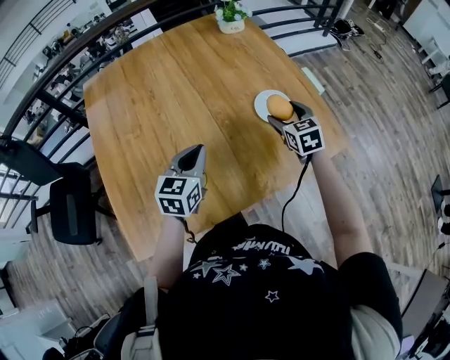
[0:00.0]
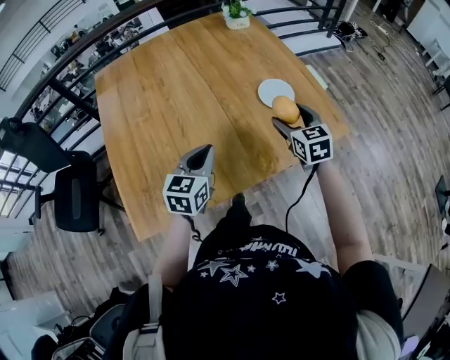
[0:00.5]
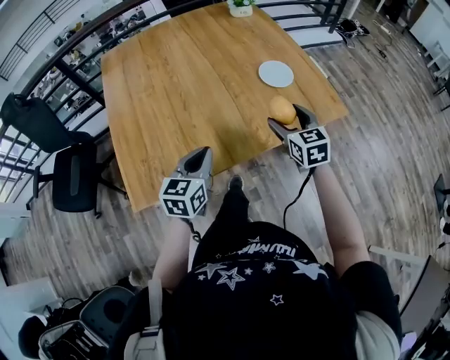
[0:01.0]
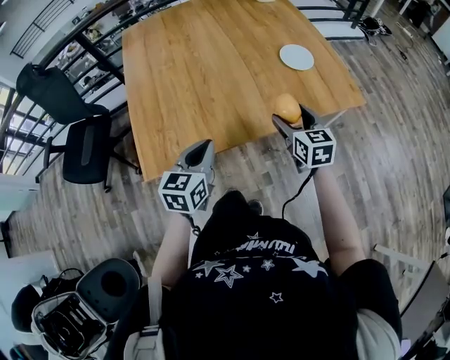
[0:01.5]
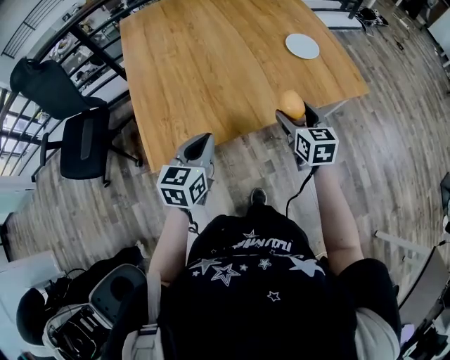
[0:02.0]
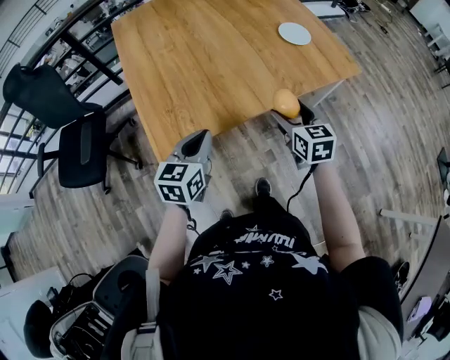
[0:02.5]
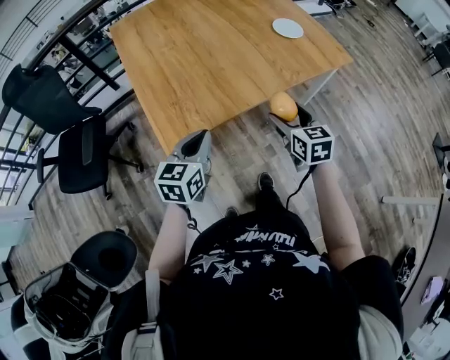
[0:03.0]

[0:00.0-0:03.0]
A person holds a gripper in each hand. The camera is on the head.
0:00.0 to 0:01.5: Both grippers travel together backward, approximately 25 cm.
0:01.5 to 0:03.0: The right gripper is displaced backward and to the left by some 20 cm. Meanwhile the left gripper goes approximately 15 cm to the left and backward.

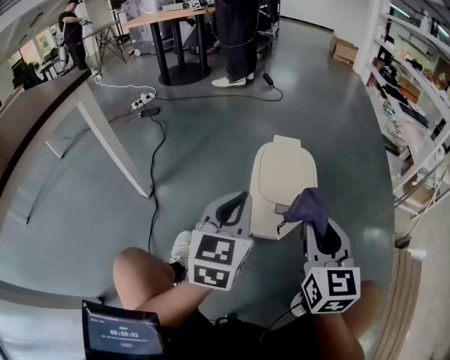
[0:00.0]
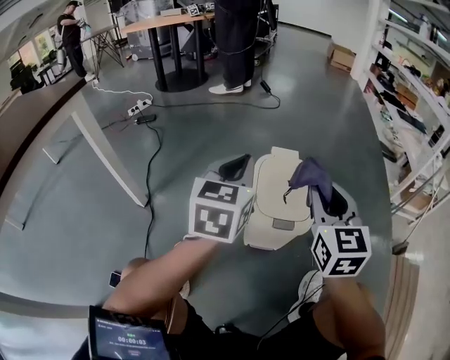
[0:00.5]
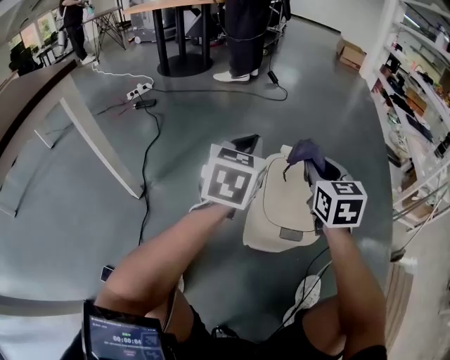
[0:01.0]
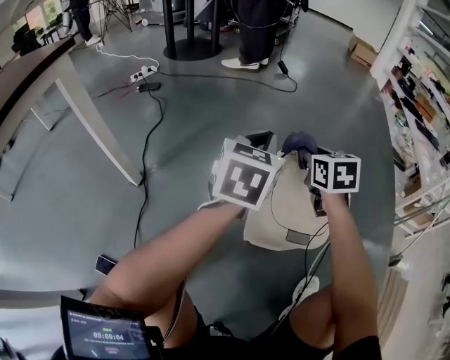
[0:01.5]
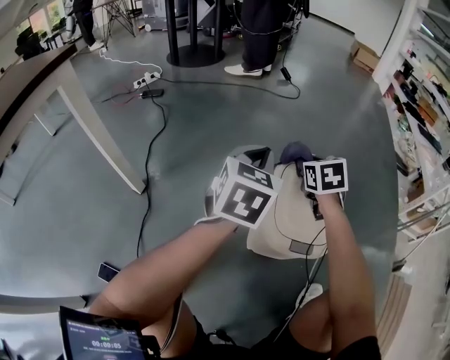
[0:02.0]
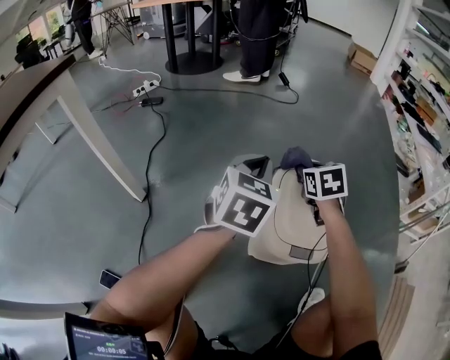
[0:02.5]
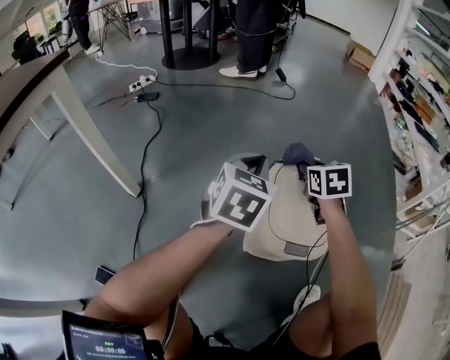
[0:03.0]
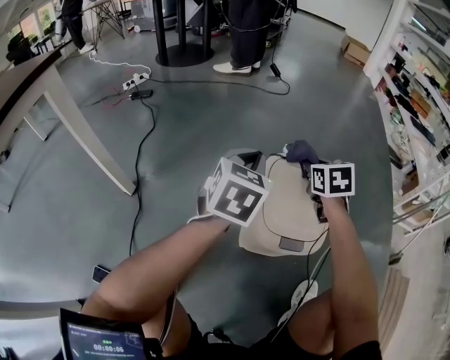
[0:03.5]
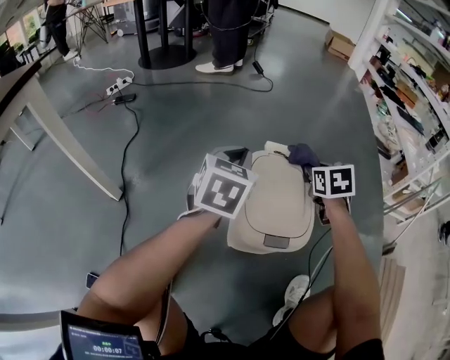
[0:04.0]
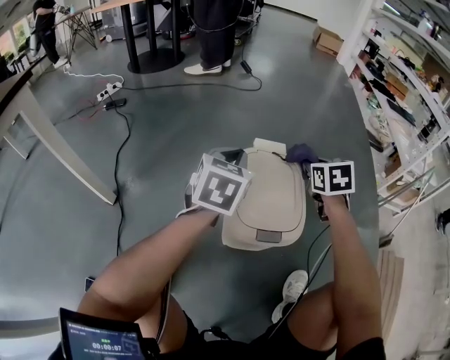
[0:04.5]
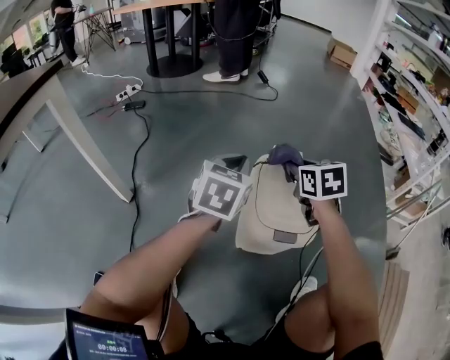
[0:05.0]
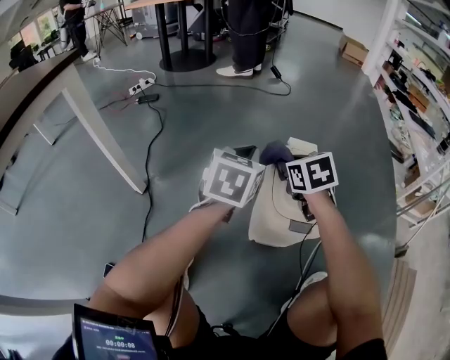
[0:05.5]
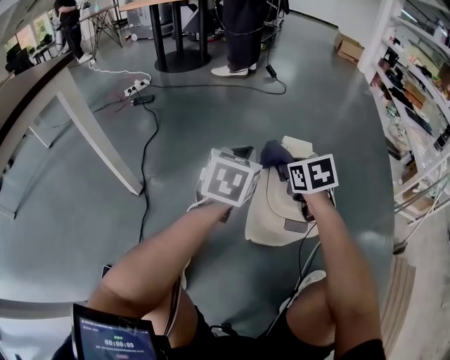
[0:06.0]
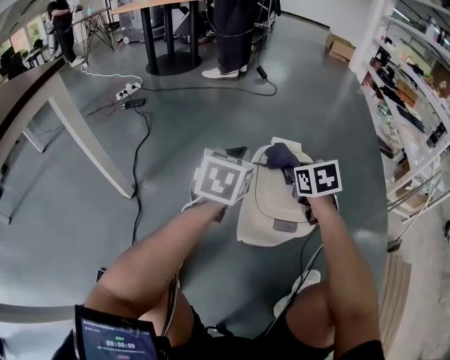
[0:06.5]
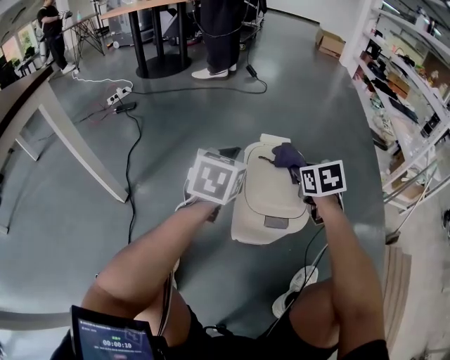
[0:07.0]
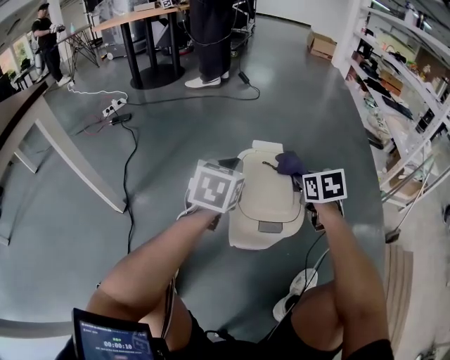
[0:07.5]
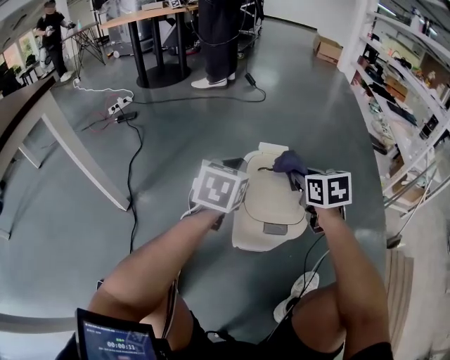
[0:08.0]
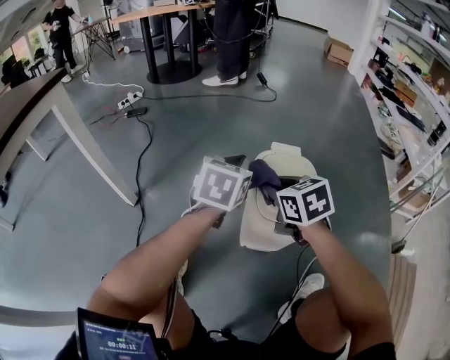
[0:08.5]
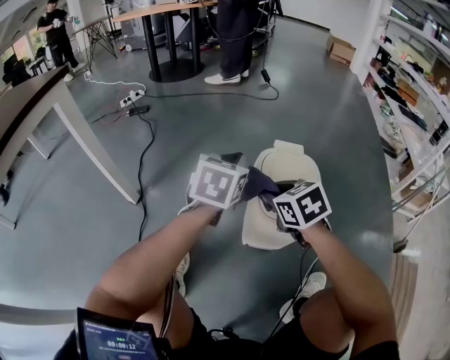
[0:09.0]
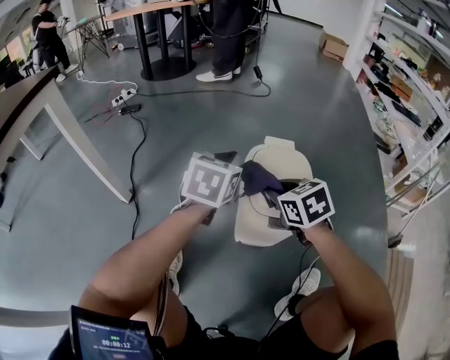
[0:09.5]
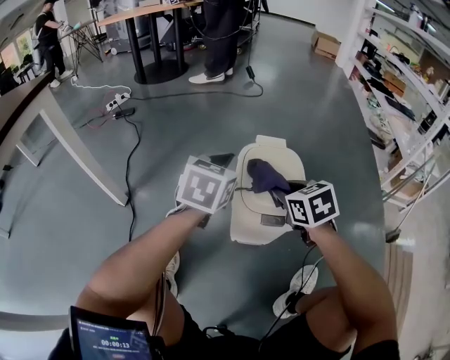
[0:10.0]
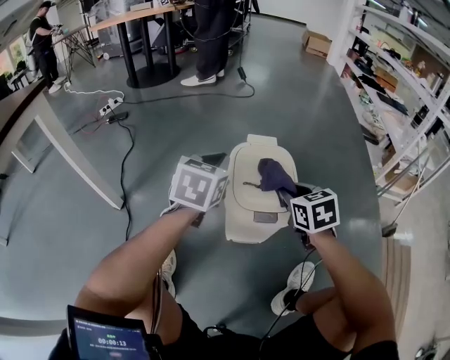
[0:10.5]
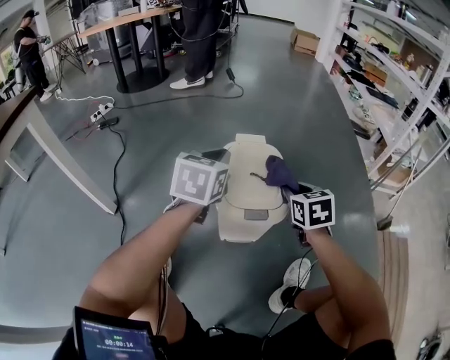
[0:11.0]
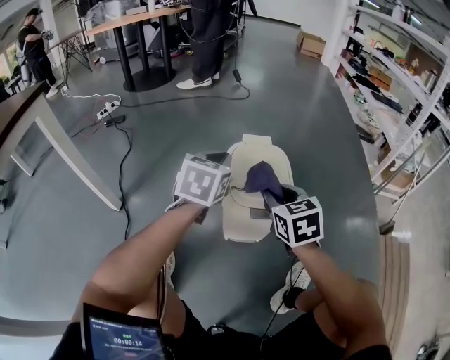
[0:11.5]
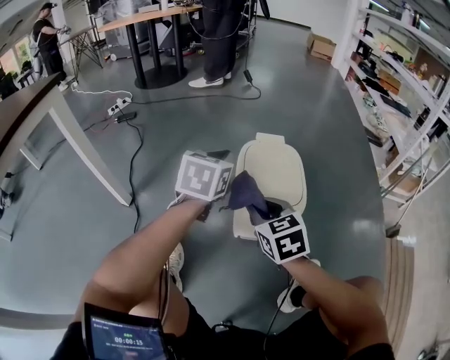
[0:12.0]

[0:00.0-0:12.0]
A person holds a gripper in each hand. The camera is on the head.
0:00.0 to 0:02.0: The left gripper heads forward, covering about 20 cm. Meanwhile the right gripper heads forward and downward, covering approximately 35 cm, and tilts its fingers approximately 30 degrees downward.
0:02.0 to 0:04.0: The right gripper heads to the right, covering some 15 cm. The left gripper moves roughly 5 cm.
0:04.0 to 0:06.0: The left gripper moves about 5 cm; the right gripper goes about 15 cm to the left and backward.
0:06.0 to 0:08.0: The right gripper heads to the right, covering about 10 cm.
0:08.0 to 0:10.0: The right gripper is displaced backward and to the left by approximately 10 cm.
0:10.0 to 0:12.0: The right gripper moves backward and to the left, roughly 10 cm.

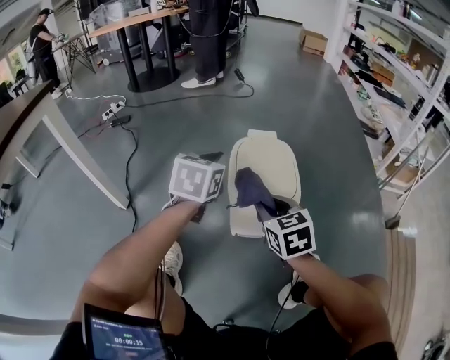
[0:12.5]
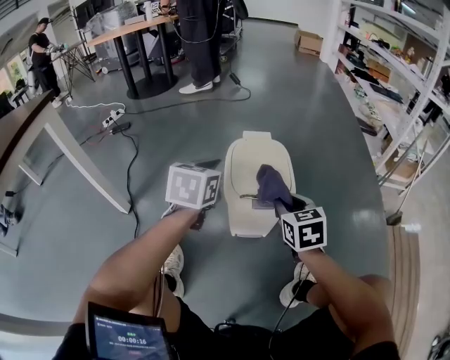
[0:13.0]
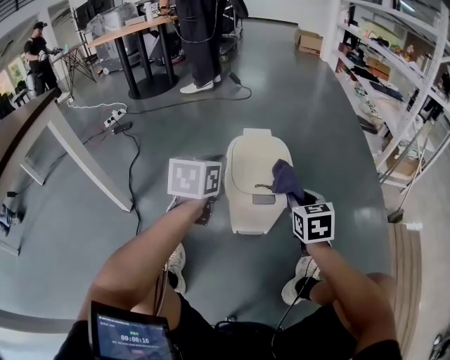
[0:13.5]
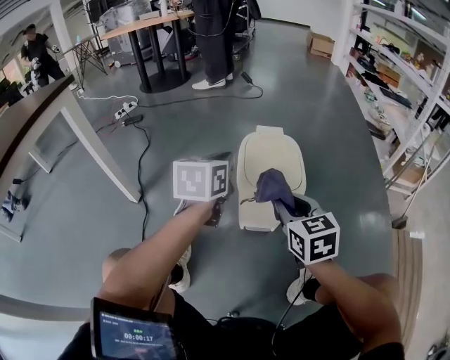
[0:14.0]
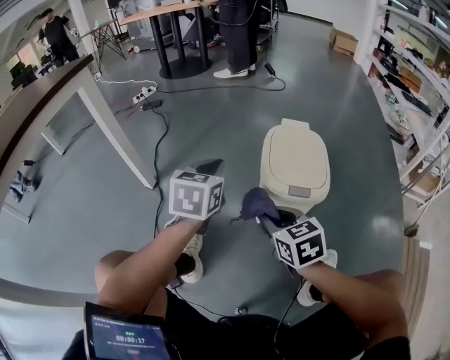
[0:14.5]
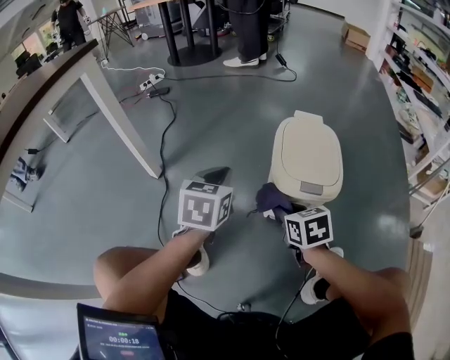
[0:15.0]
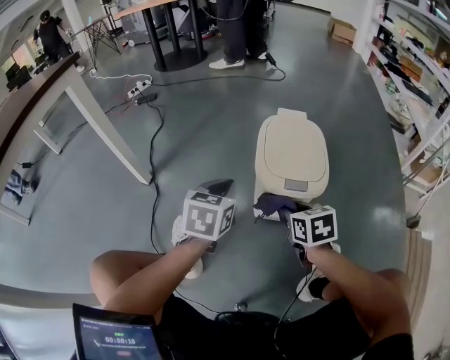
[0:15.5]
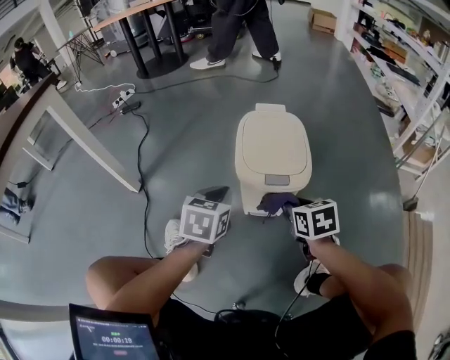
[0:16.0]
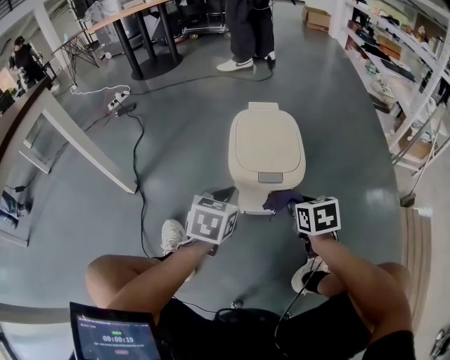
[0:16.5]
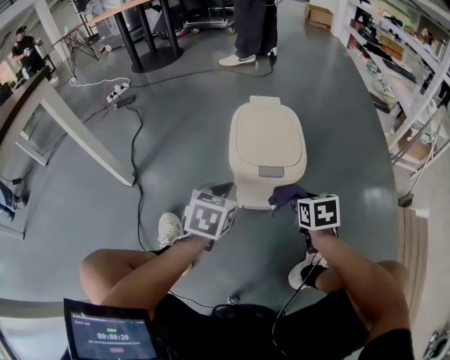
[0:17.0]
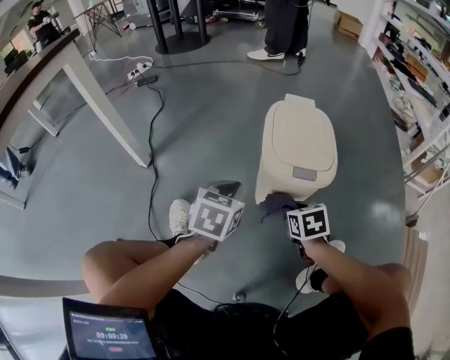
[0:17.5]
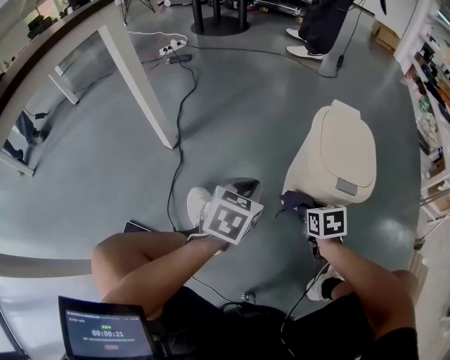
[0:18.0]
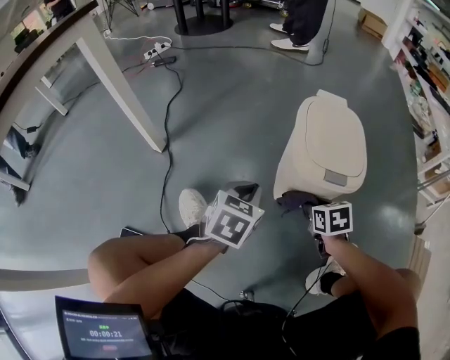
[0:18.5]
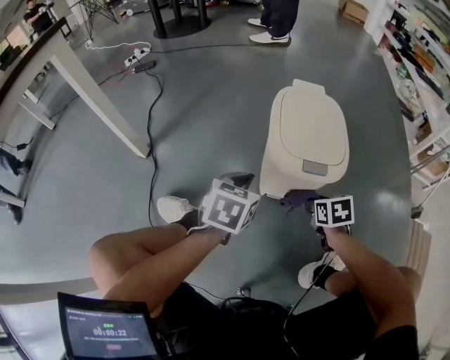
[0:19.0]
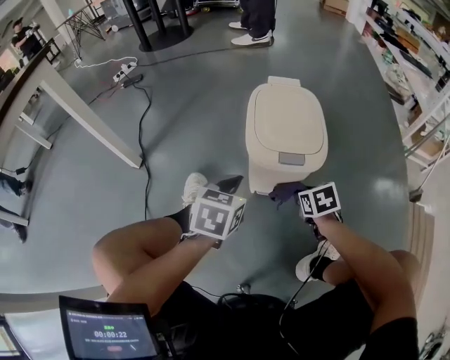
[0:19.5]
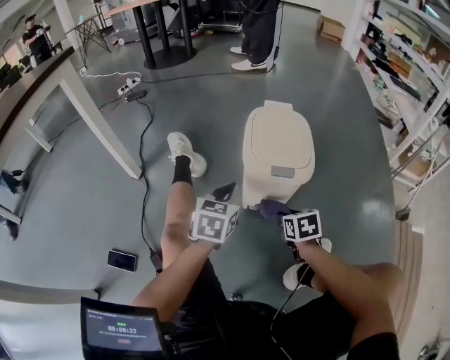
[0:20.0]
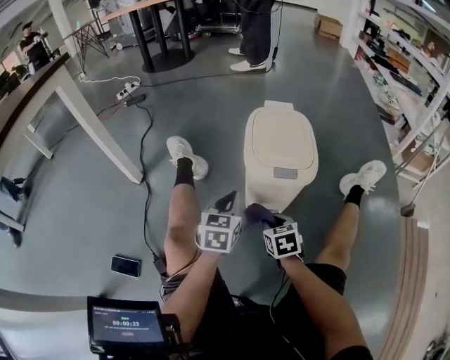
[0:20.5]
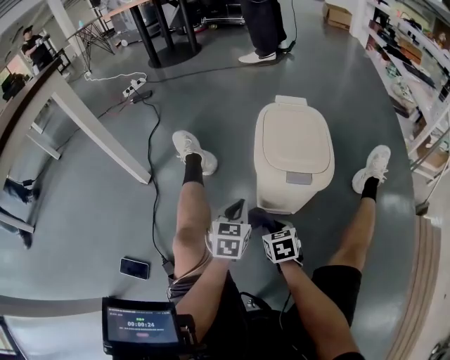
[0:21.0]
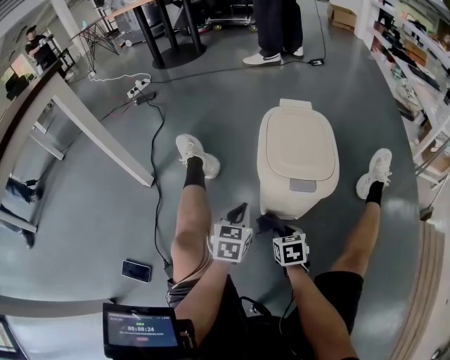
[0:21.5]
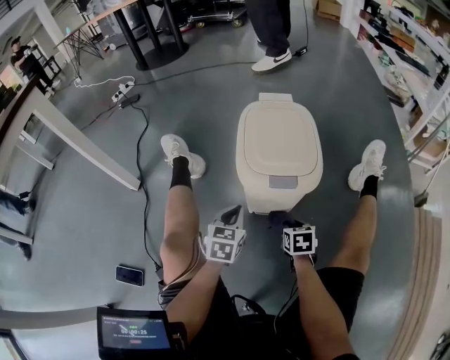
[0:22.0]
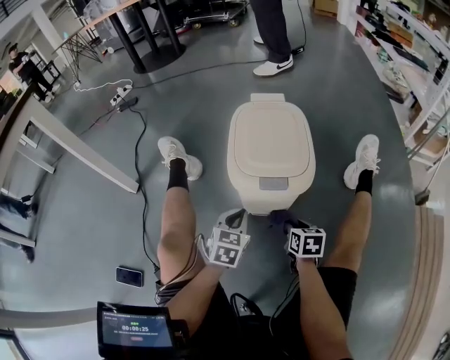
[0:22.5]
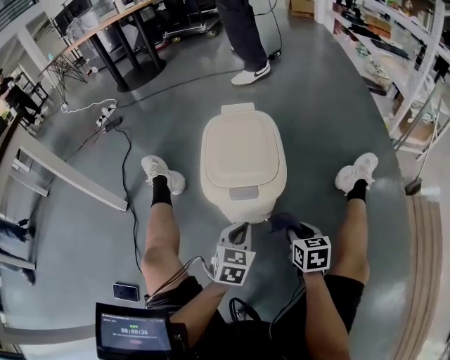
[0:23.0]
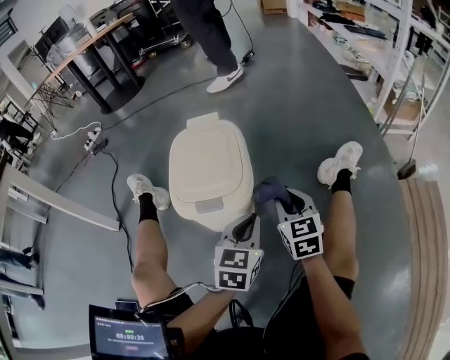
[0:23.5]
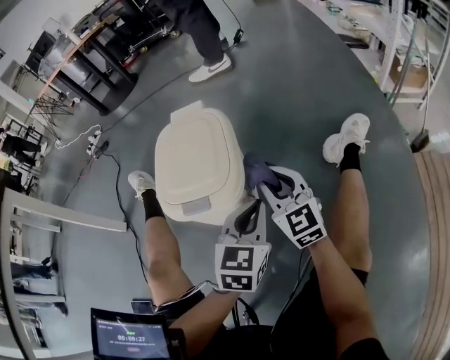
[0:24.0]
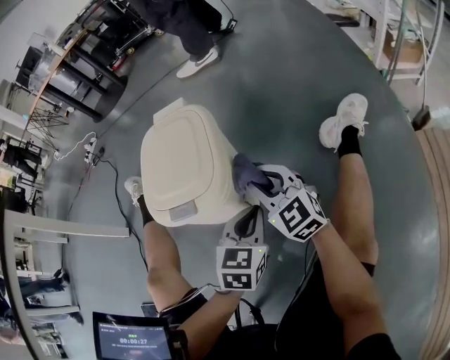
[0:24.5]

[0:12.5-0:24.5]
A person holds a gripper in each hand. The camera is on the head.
0:12.5 to 0:14.5: The left gripper goes about 10 cm to the left and backward. Meanwhile the right gripper shifts some 10 cm backward and to the left.
0:14.5 to 0:16.5: The right gripper heads to the right and downward, covering roughly 20 cm, and changes its angle by roughly 20 degrees. Meanwhile the left gripper heads to the right, downward and backward, covering approximately 15 cm.
0:16.5 to 0:18.5: The left gripper travels to the left by roughly 10 cm, while the right gripper is displaced downward and to the left by approximately 10 cm.
0:18.5 to 0:20.5: The left gripper travels to the right by about 5 cm. The right gripper goes to the right and returns, approximately 10 cm each way.
0:20.5 to 0:22.5: The right gripper moves to the right and downward, about 15 cm, and changes its angle by roughly 20 degrees. Meanwhile the left gripper moves downward and to the right, some 10 cm.
0:22.5 to 0:24.5: The left gripper moves to the right, approximately 20 cm; the right gripper is displaced upward and forward by some 20 cm, and tilts its fingers some 30 degrees upward.
